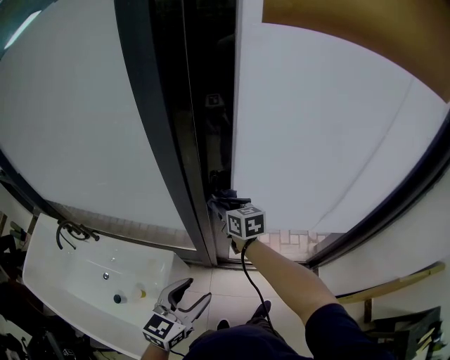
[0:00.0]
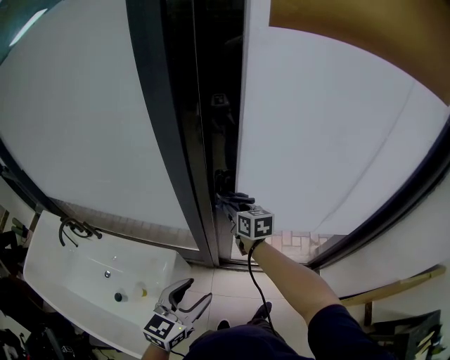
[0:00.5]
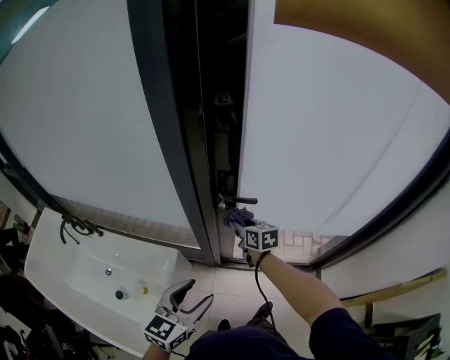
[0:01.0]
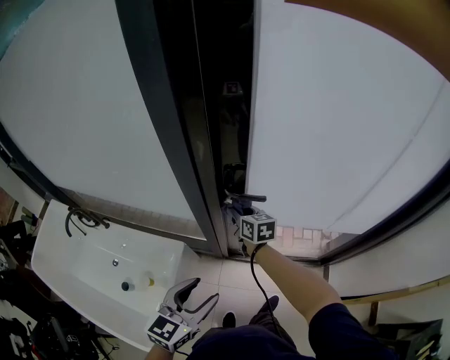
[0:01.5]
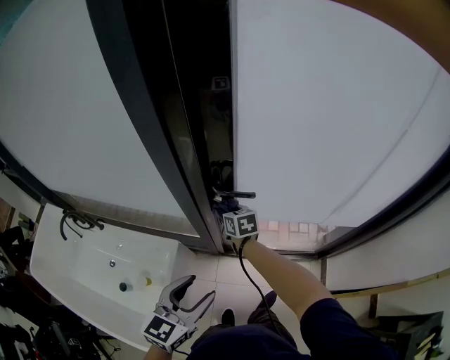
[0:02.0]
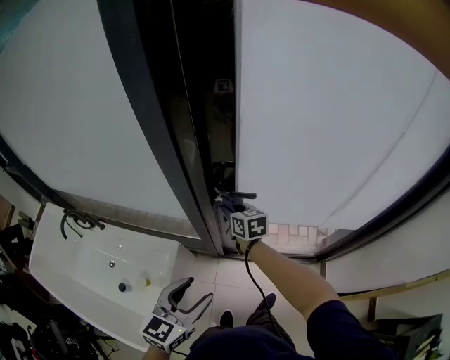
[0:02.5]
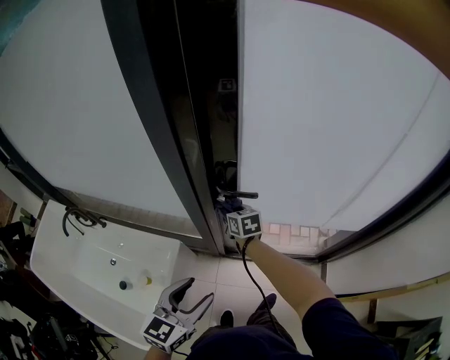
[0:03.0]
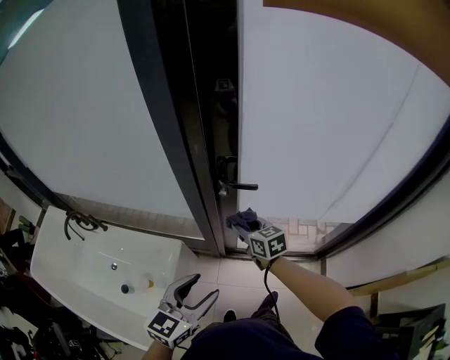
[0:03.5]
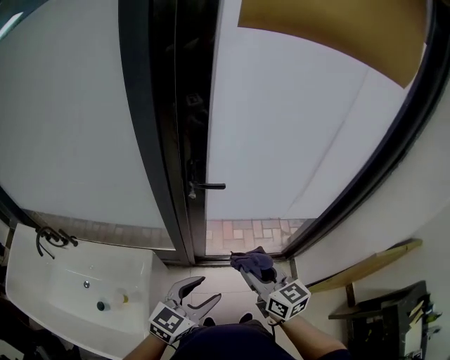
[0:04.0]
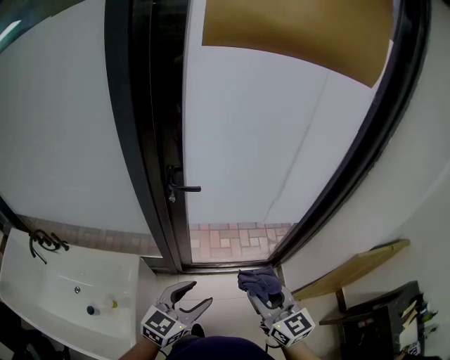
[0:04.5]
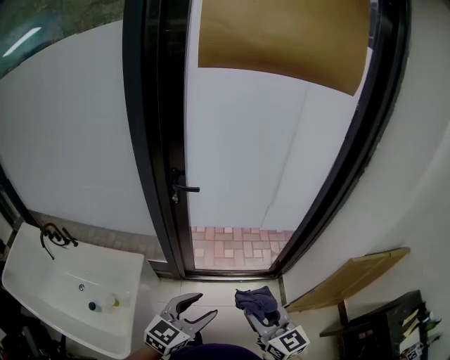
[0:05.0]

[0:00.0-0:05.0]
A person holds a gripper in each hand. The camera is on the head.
0:00.0 to 0:02.5: The right gripper travels downward by roughly 5 cm.
0:02.5 to 0:05.0: The right gripper is displaced backward and to the right by approximately 60 cm, and rotates approximately 30 degrees. The left gripper moves backward and to the right, approximately 25 cm, and changes its angle by approximately 20 degrees.

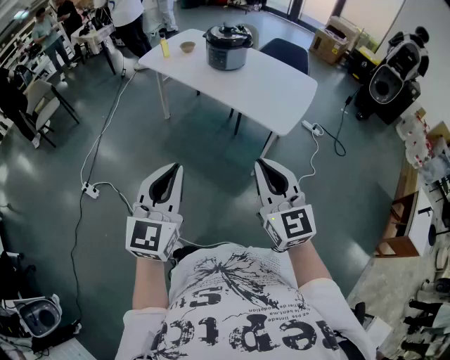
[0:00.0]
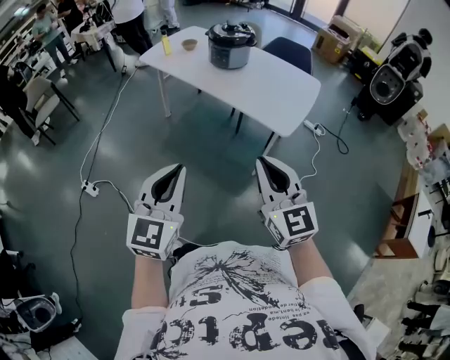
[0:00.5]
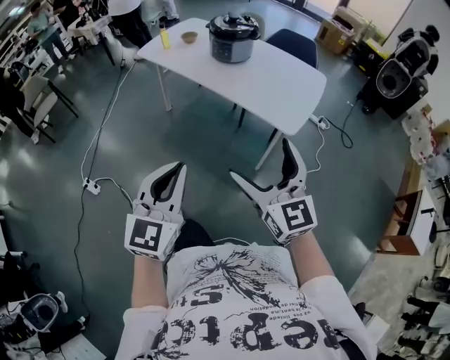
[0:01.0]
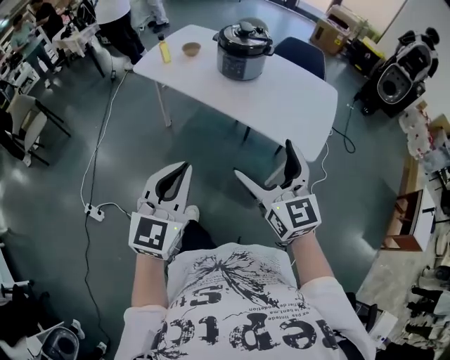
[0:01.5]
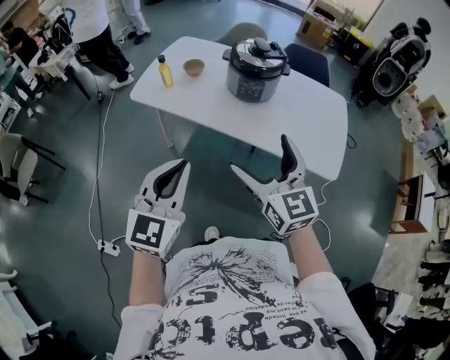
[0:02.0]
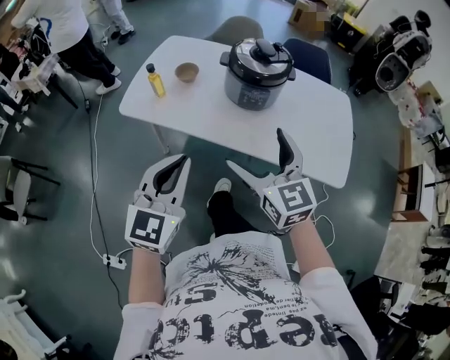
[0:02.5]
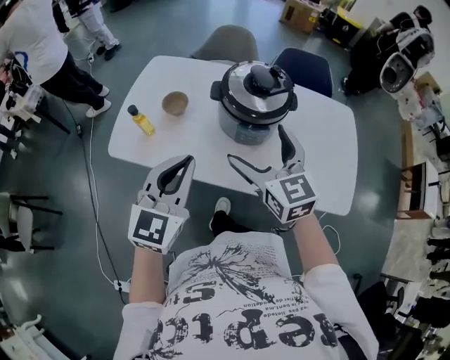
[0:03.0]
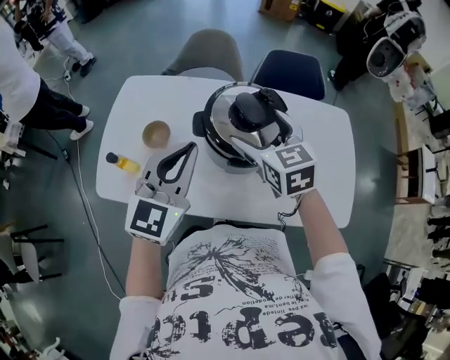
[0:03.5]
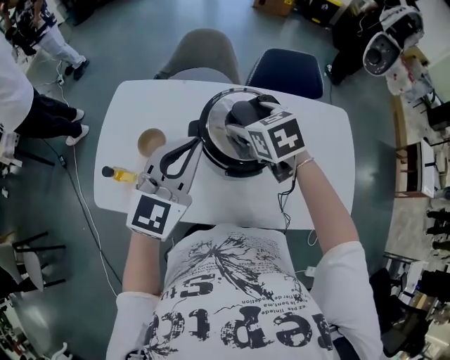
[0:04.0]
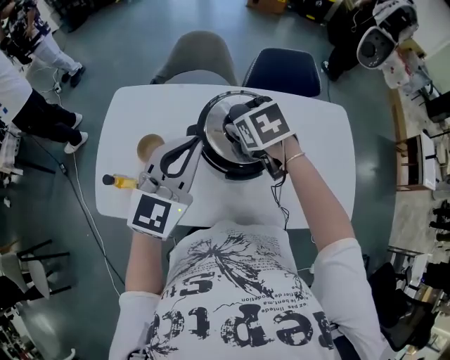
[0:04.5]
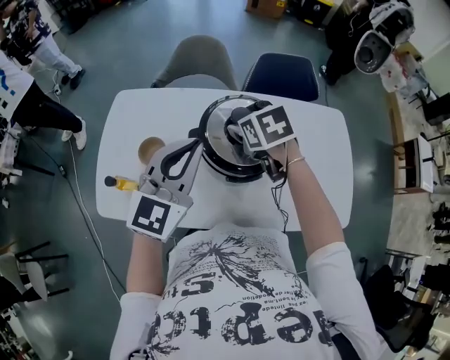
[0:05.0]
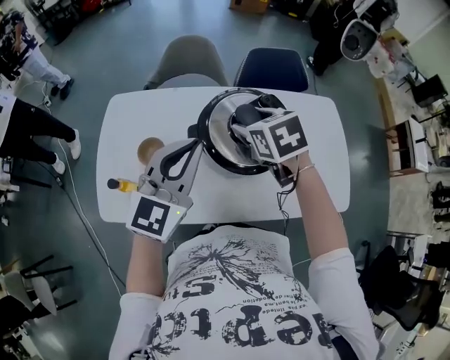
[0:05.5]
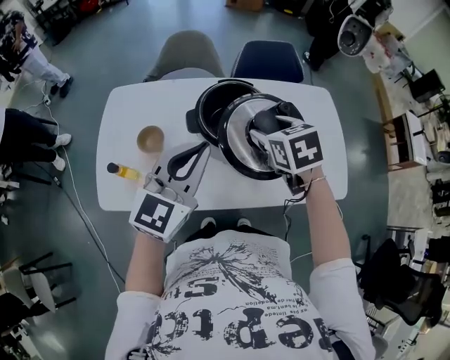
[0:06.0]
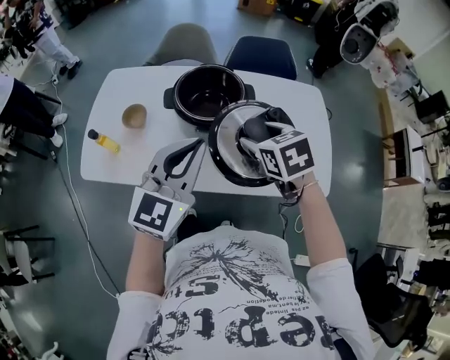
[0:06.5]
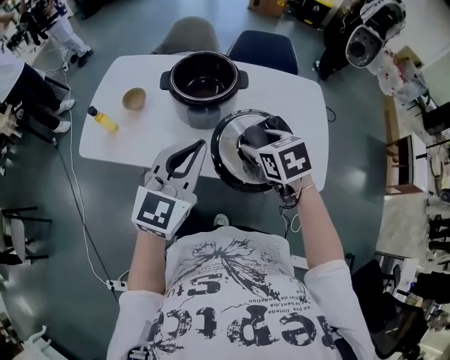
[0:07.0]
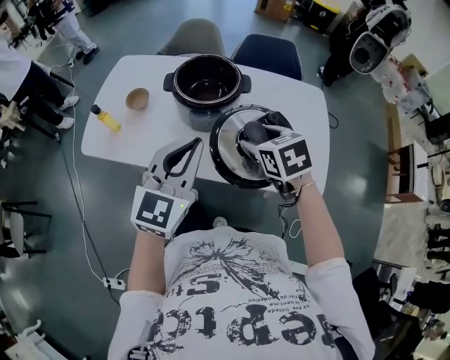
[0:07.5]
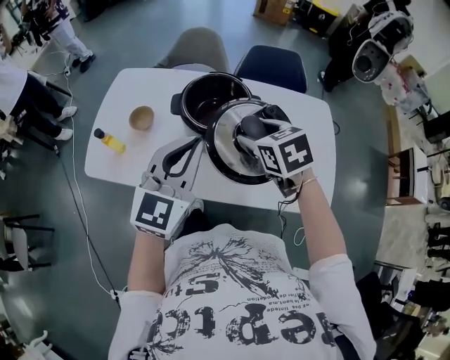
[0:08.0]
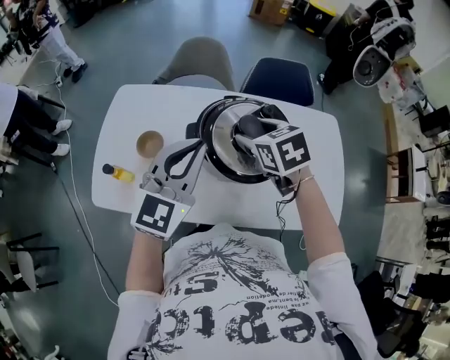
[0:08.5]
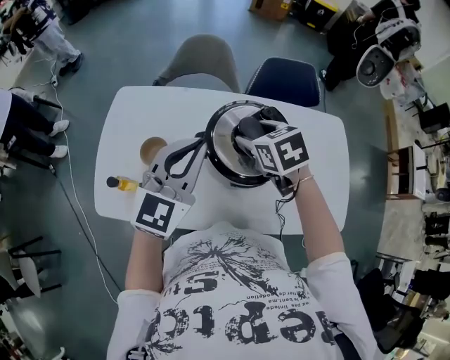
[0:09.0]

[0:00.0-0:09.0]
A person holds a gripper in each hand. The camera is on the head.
0:00.0 to 0:02.0: The two grippers travel together, forward and to the left, roughly 60 cm. The right gripper opens up.
0:02.0 to 0:04.5: Both grippers are carried forward, about 60 cm. The right gripper angles its fingers downward, by roughly 50 degrees, and closes its fingers, while the left gripper turns by some 30 degrees.
0:04.5 to 0:07.0: Both grippers move backward and to the right, some 35 cm.
0:07.0 to 0:09.0: Both grippers move forward and to the left, about 35 cm.

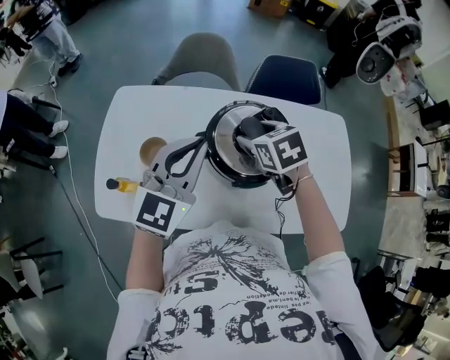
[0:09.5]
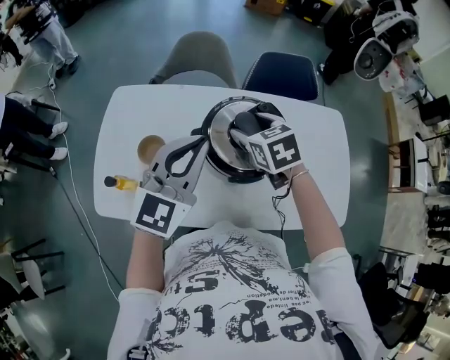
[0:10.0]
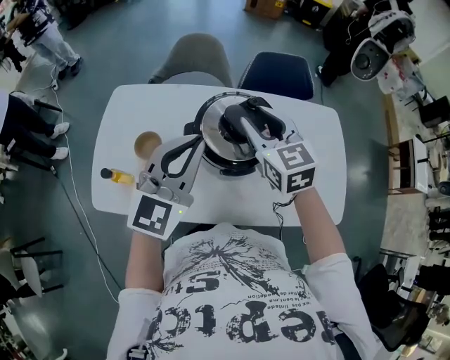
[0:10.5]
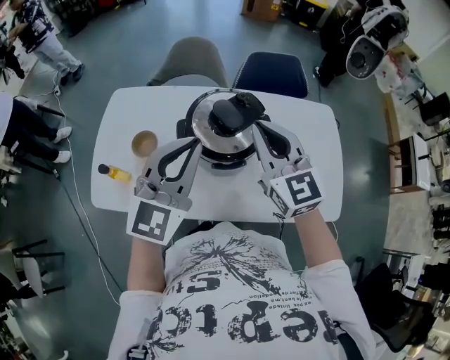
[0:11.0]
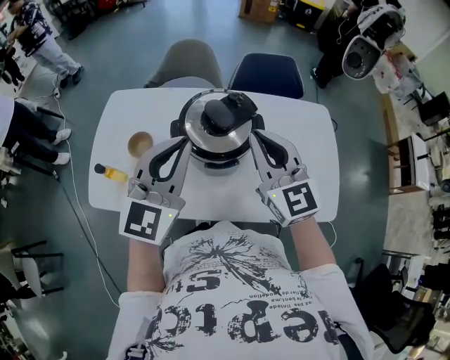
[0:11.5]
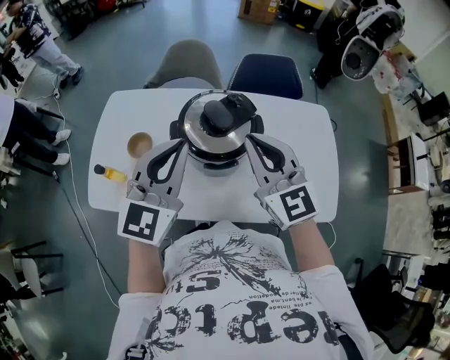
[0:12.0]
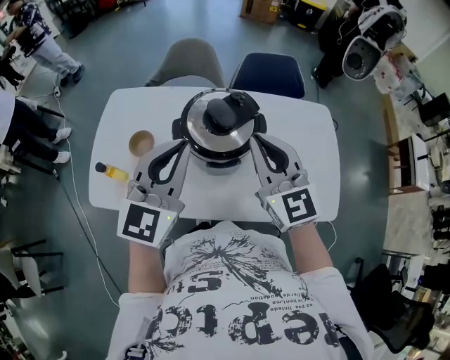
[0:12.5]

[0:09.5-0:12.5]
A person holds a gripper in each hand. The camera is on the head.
0:09.5 to 0:11.0: The left gripper heads backward and to the right, covering approximately 10 cm. The right gripper moves upward, backward and to the right, about 20 cm, tilts its fingers some 50 degrees upward, and closes.
0:11.0 to 0:12.5: The grippers stay close to where they were, moving slightly.

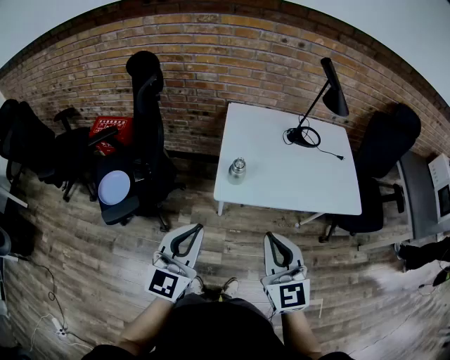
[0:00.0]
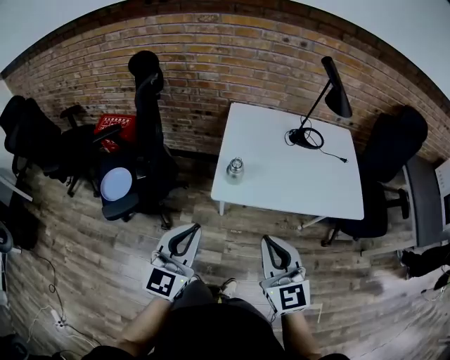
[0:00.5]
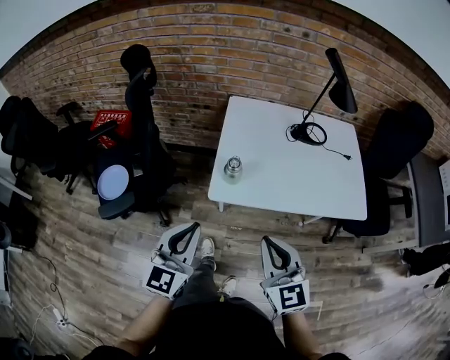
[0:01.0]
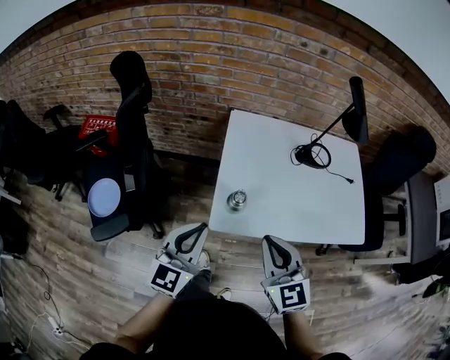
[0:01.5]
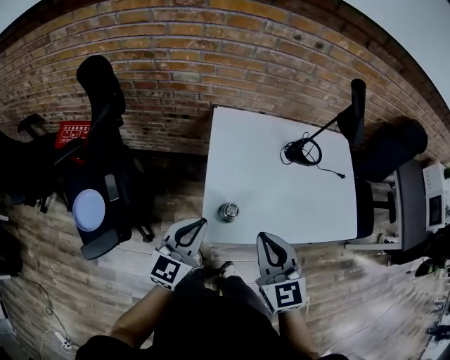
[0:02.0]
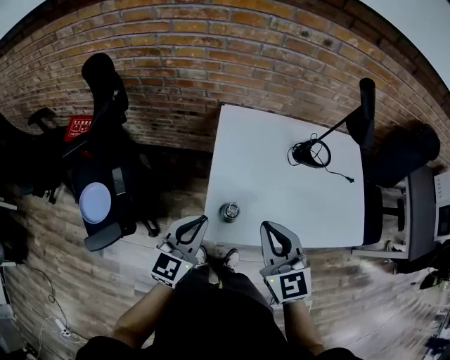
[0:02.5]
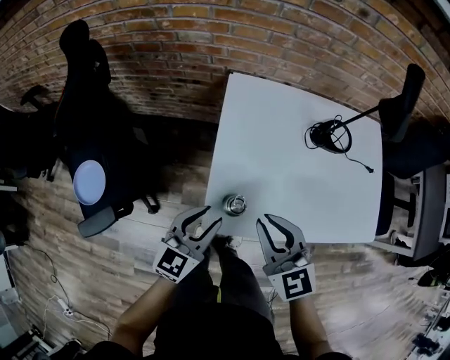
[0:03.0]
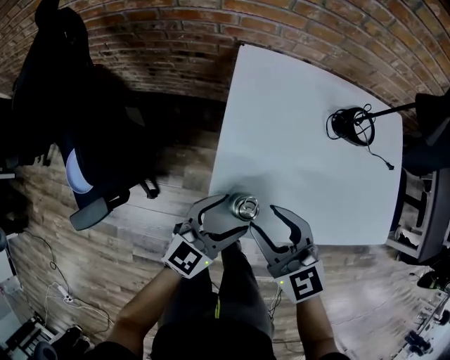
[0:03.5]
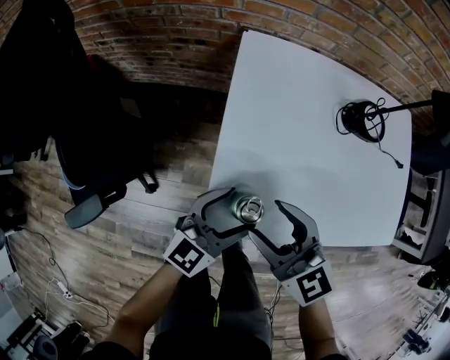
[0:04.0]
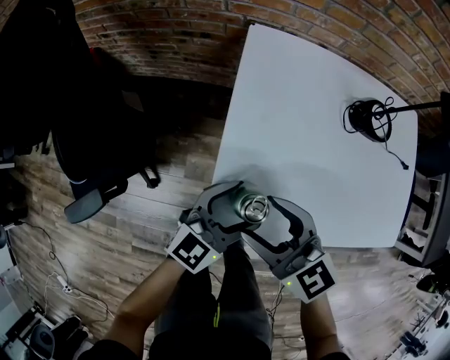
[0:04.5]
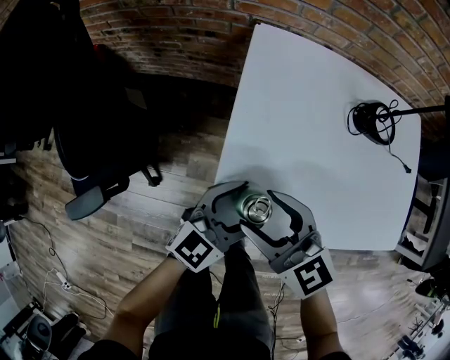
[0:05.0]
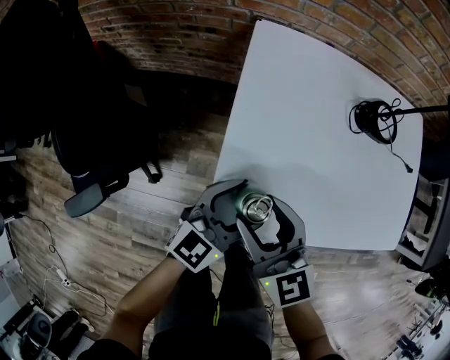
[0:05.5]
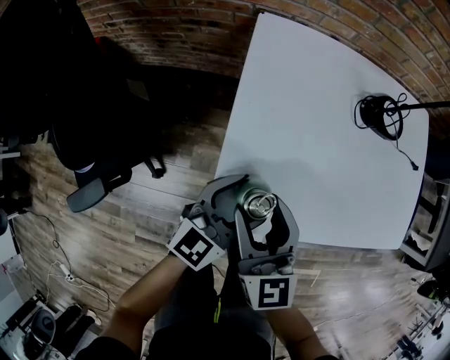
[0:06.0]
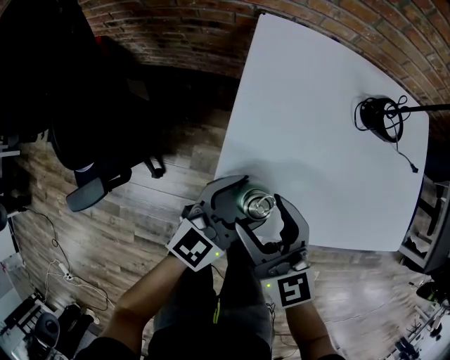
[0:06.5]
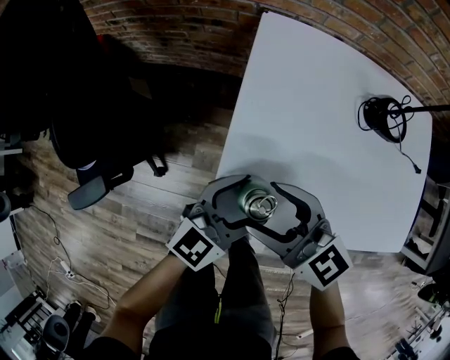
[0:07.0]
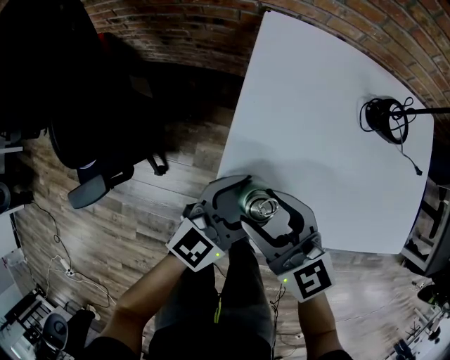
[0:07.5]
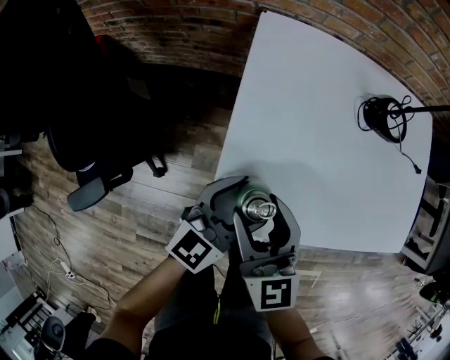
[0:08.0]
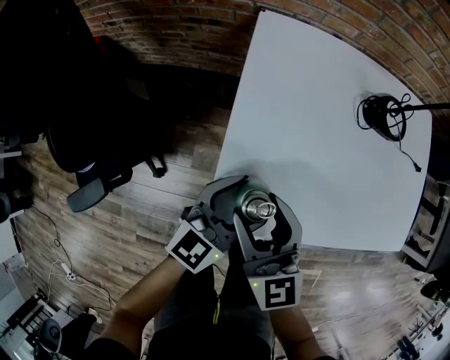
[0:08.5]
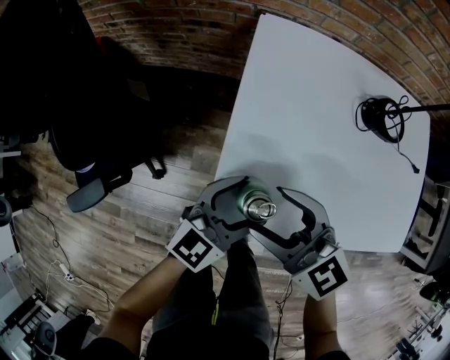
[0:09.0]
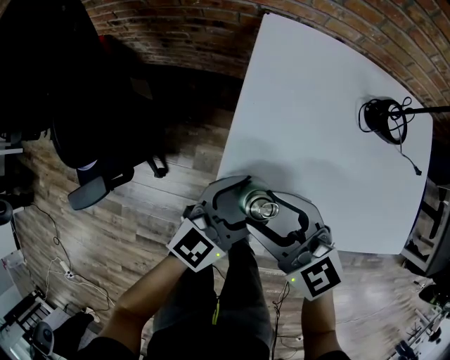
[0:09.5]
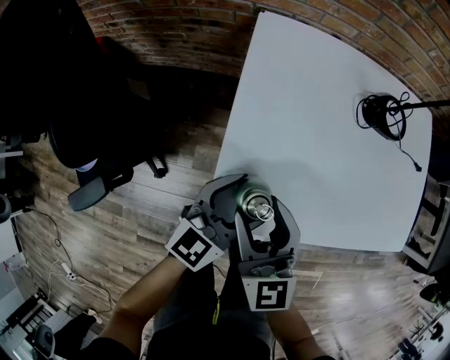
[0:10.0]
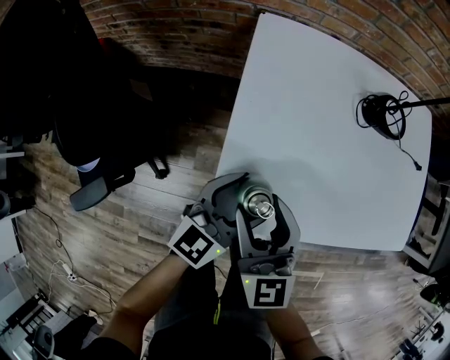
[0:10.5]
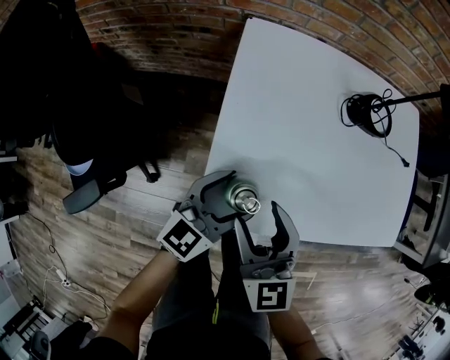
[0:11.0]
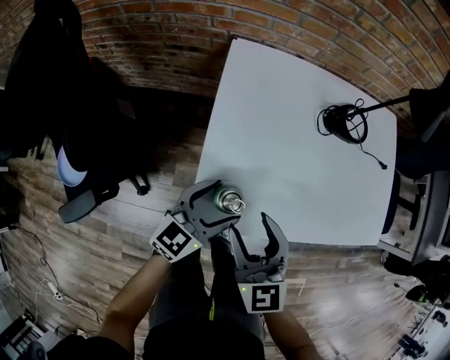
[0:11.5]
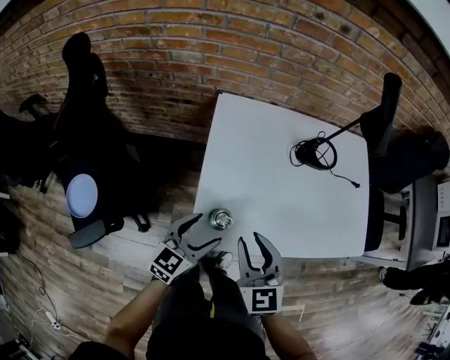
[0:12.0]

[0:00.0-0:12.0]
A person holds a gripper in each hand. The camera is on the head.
0:00.0 to 0:02.0: The grippers both shift forward by roughly 25 cm.
0:02.0 to 0:04.0: The left gripper shifts approximately 15 cm downward and to the right, and opens, while the right gripper goes about 15 cm downward and forward, rotates some 30 degrees, and opens its fingers.
0:04.0 to 0:06.0: The right gripper rotates approximately 30 degrees.
0:10.0 to 0:12.0: The right gripper moves to the right and upward, approximately 10 cm, and closes, while the left gripper ends up some 5 cm from where it was.
